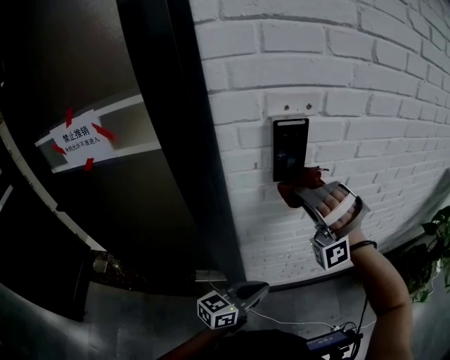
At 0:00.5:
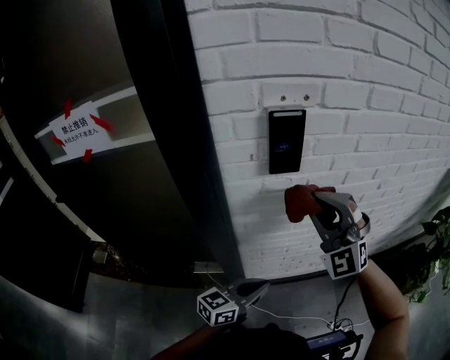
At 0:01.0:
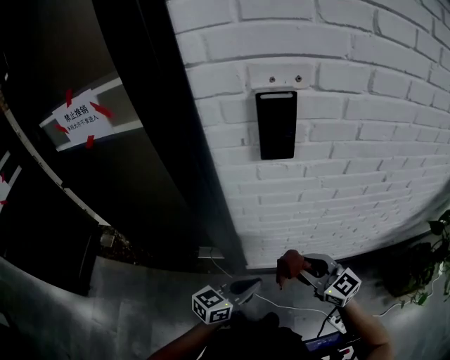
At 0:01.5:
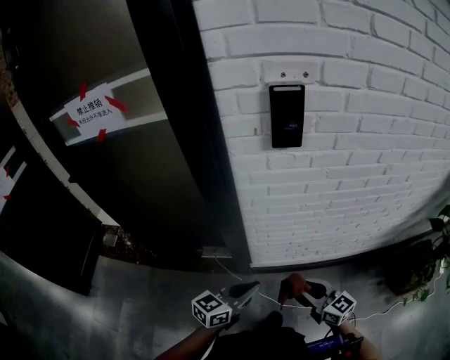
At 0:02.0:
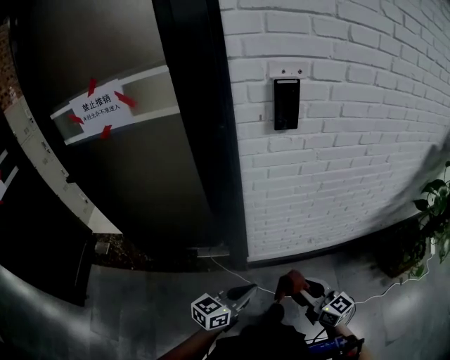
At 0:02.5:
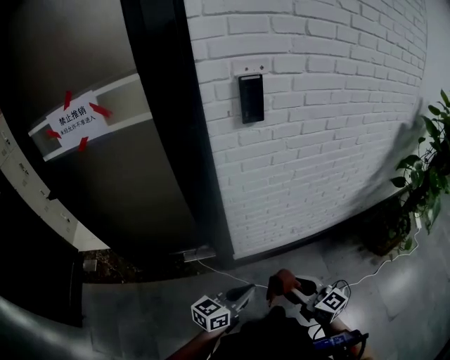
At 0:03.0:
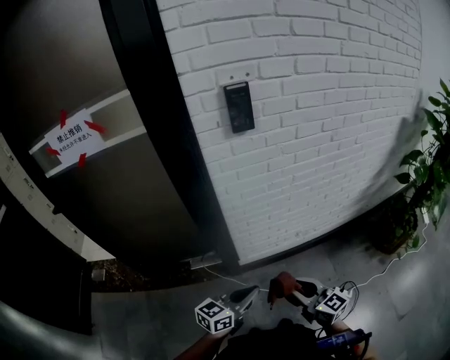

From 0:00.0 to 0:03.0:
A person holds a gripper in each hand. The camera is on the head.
From 0:00.0 to 0:01.5: The right gripper is displaced downward and backward by some 35 cm, and twists some 130 degrees clockwise, seen from behind, while the left gripper shifts some 10 cm backward and downward.
From 0:01.5 to 0:03.0: The grippers both shift backward by approximately 15 cm.

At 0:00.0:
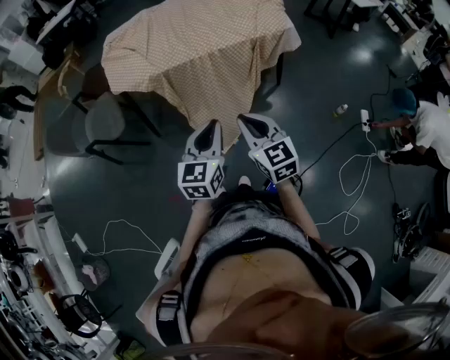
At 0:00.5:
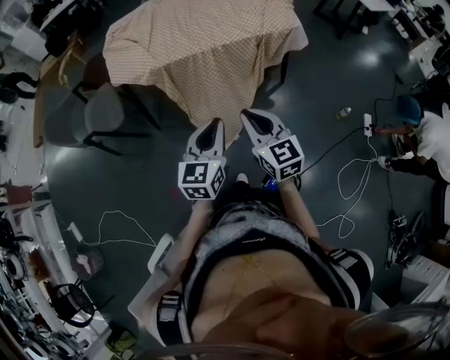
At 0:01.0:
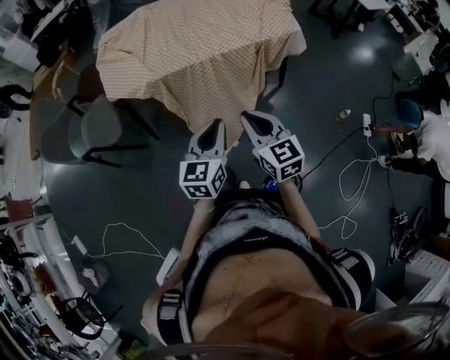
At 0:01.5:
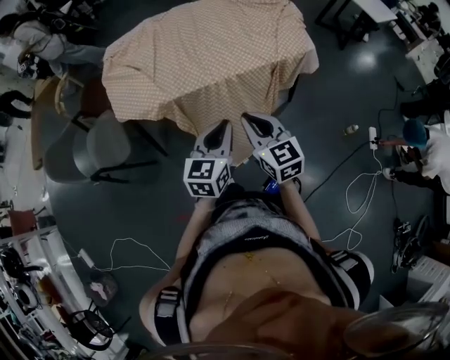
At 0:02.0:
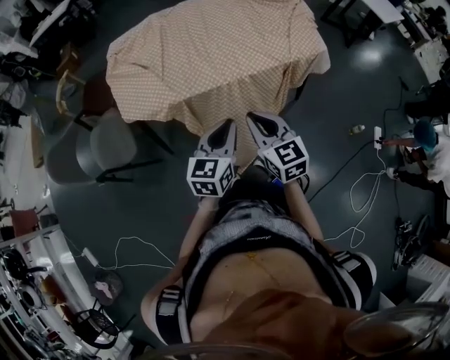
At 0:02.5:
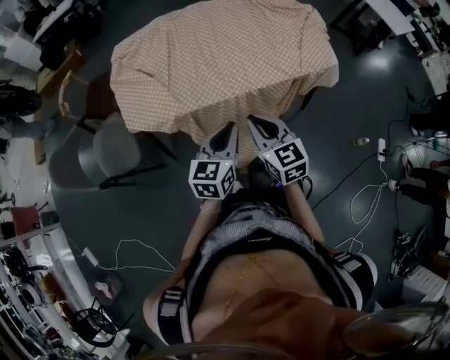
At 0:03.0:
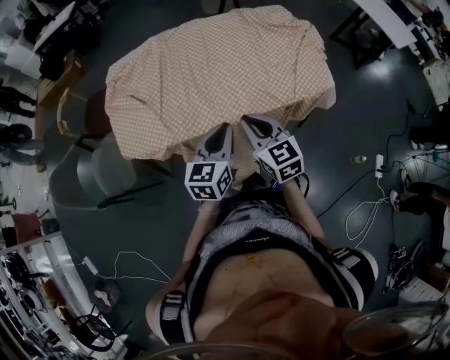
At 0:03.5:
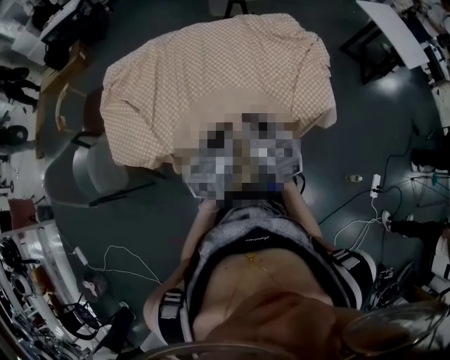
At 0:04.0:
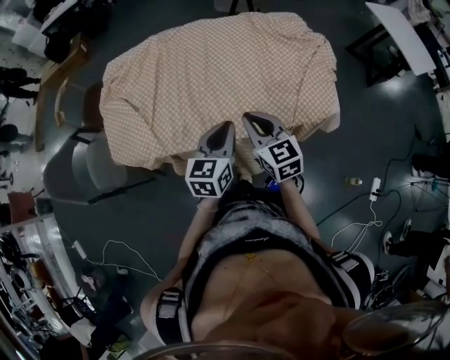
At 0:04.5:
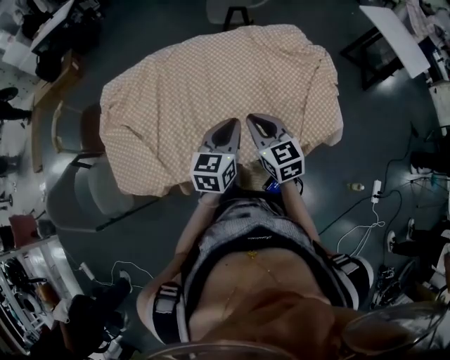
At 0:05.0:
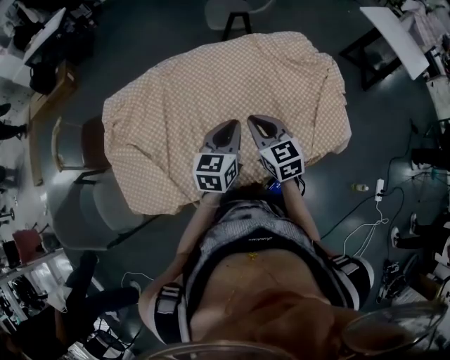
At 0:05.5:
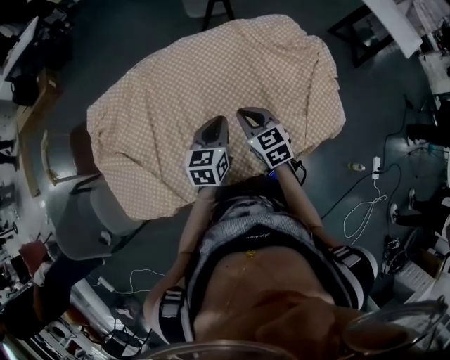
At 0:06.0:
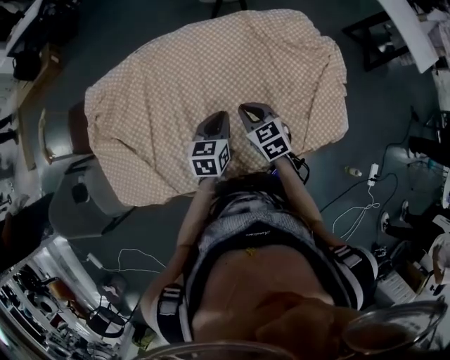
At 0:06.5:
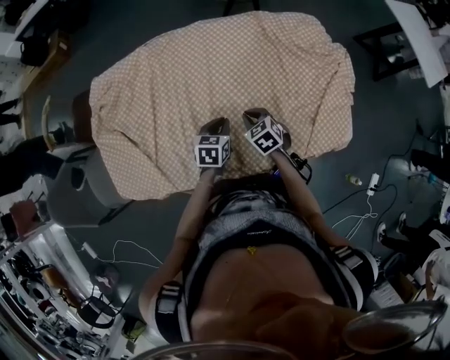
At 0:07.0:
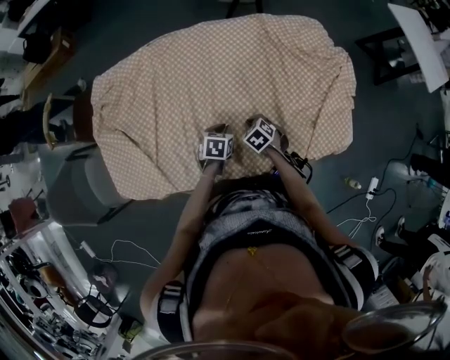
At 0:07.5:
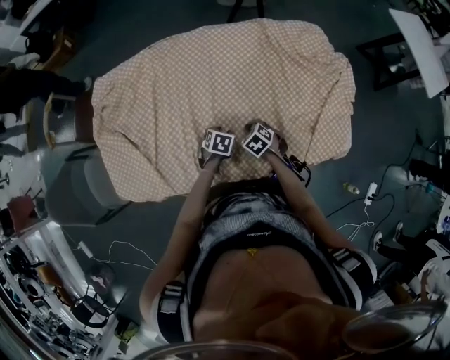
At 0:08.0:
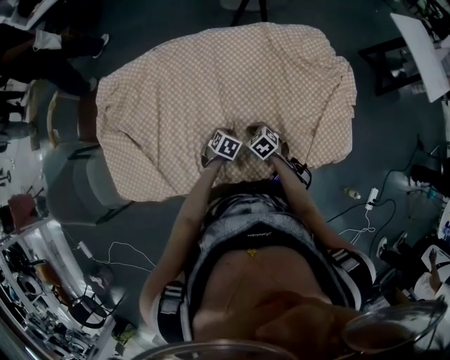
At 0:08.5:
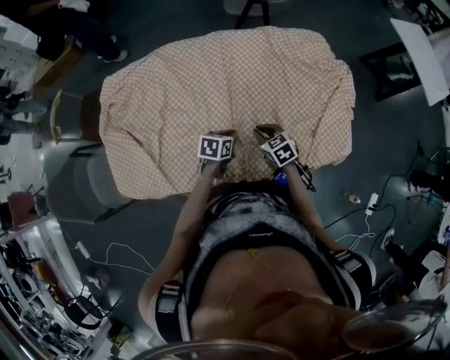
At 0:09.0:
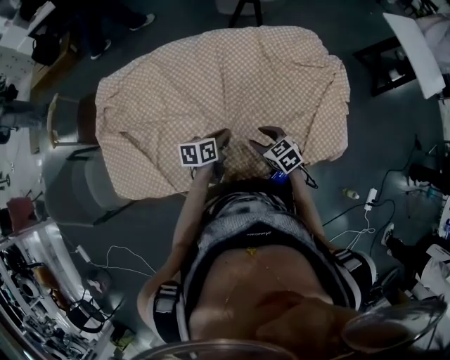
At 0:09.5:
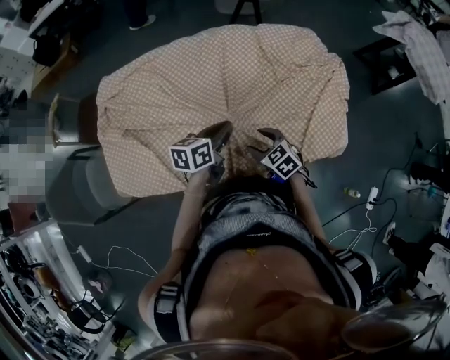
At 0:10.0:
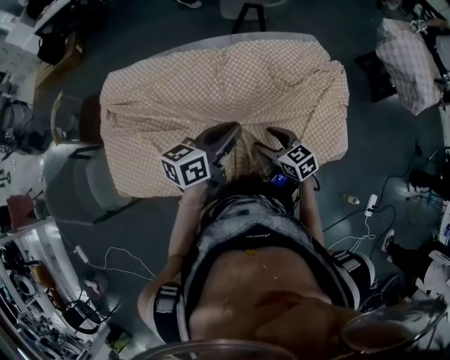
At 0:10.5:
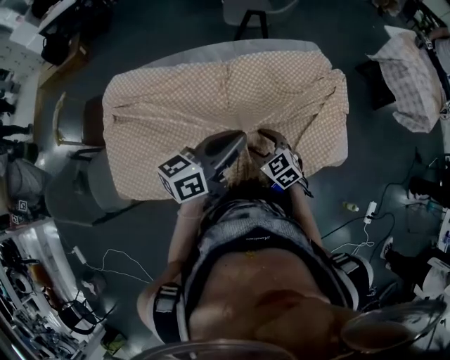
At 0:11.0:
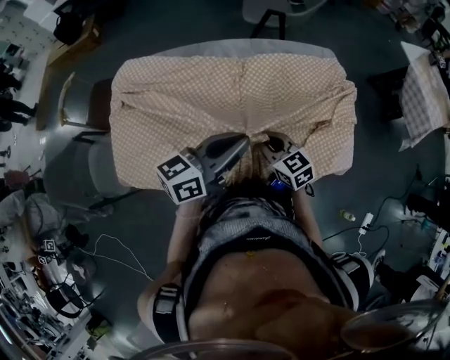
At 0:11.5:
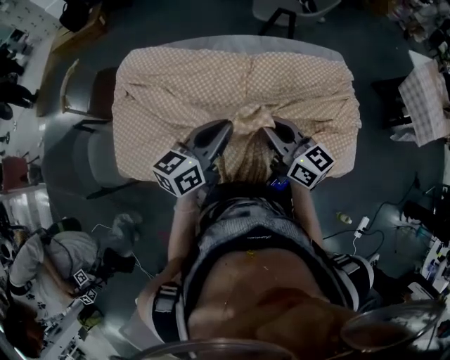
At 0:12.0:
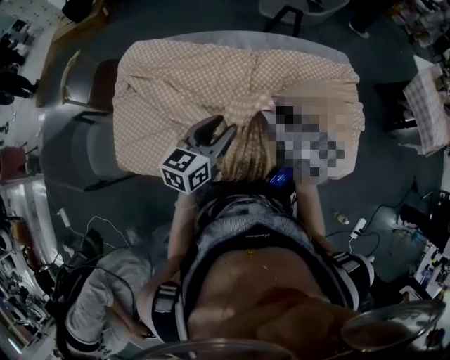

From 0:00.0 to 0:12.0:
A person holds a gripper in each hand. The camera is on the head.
From 0:00.0 to 0:02.0: Both grippers travel together forward, about 20 cm.
From 0:02.0 to 0:04.0: Both grippers move forward, some 25 cm.
From 0:04.0 to 0:06.0: Both grippers travel together forward and downward, some 25 cm.
From 0:06.0 to 0:08.0: The two grippers go some 20 cm downward. The right gripper swivels about 30 degrees; the left gripper angles its fingers downward, by about 30 degrees, and opens and closes again.
From 0:08.0 to 0:10.0: The right gripper heads upward, covering approximately 20 cm, rotates approximately 30 degrees, and opens. Meanwhile the left gripper is displaced upward by roughly 35 cm, and tips its fingers upward by about 60 degrees.
From 0:10.0 to 0:12.0: The right gripper heads upward and to the left, covering approximately 25 cm, tilts its fingers approximately 30 degrees upward, and closes its fingers. Meanwhile the left gripper travels to the left by roughly 10 cm, changes its angle by roughly 20 degrees, and opens.

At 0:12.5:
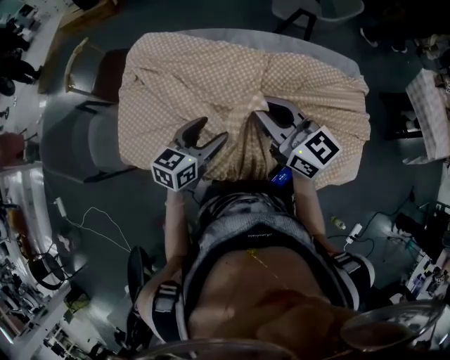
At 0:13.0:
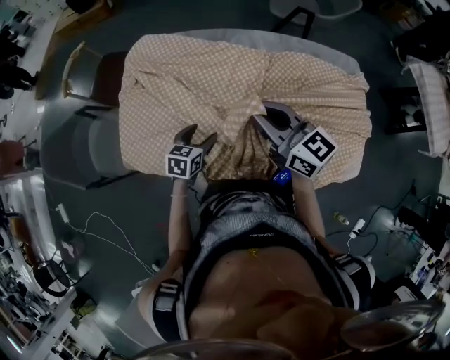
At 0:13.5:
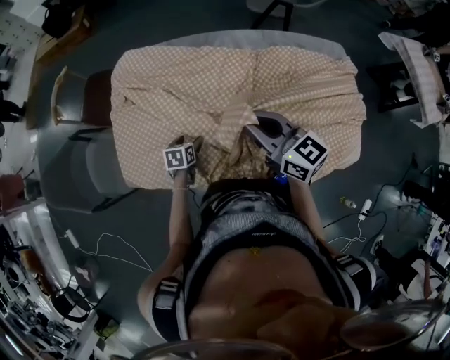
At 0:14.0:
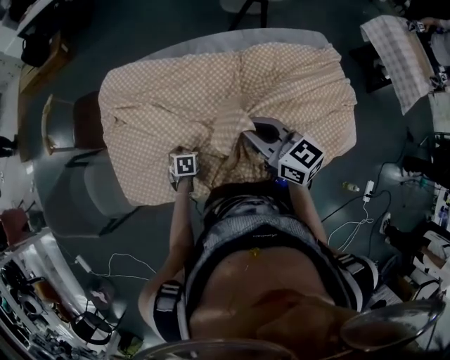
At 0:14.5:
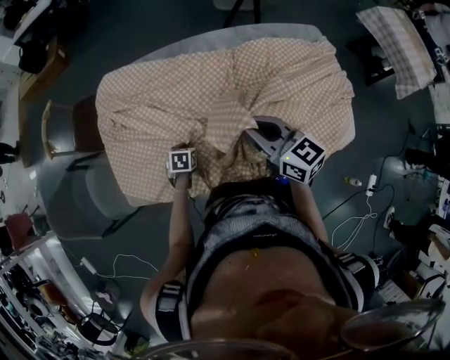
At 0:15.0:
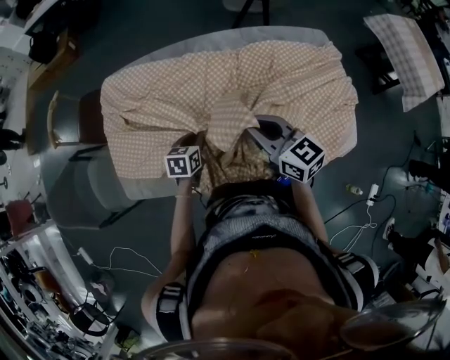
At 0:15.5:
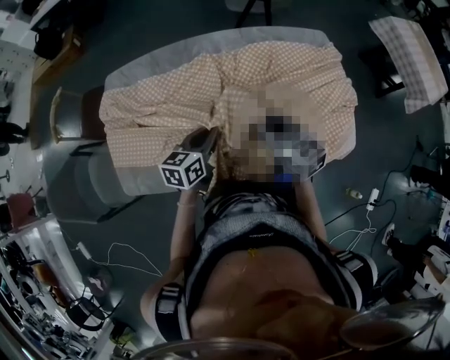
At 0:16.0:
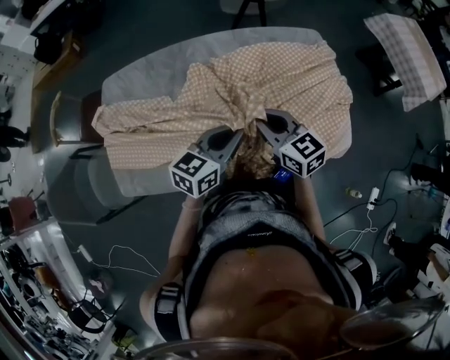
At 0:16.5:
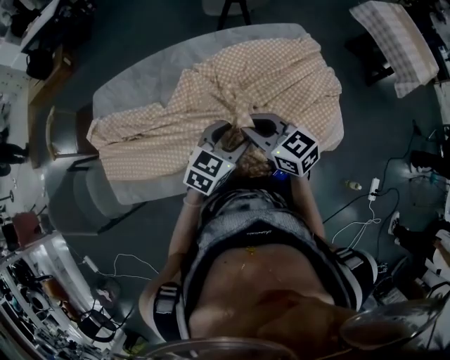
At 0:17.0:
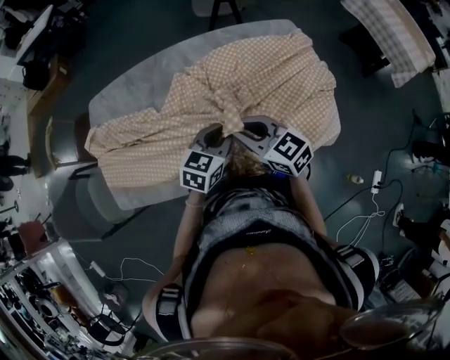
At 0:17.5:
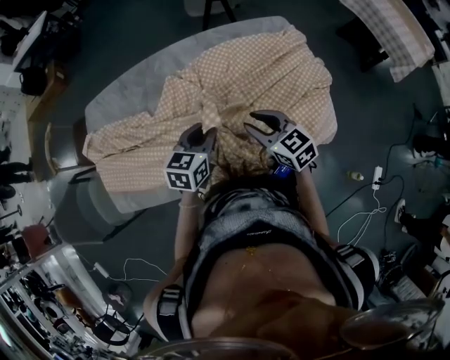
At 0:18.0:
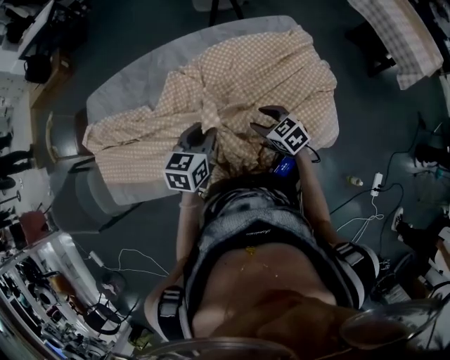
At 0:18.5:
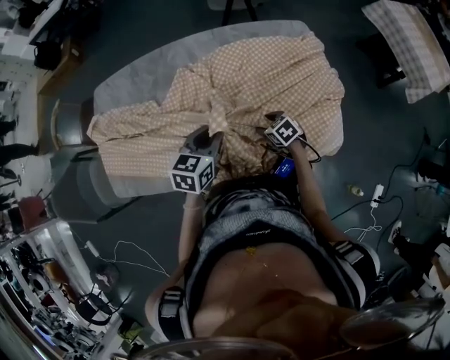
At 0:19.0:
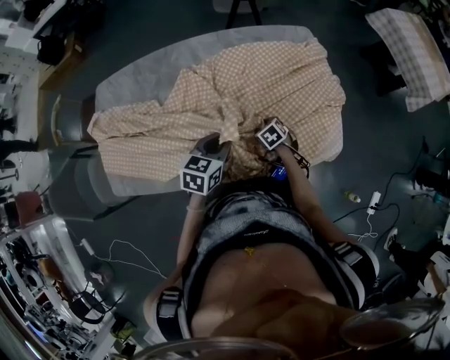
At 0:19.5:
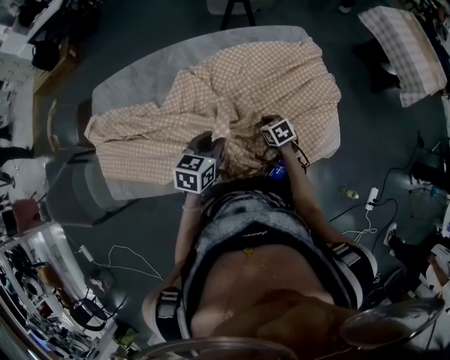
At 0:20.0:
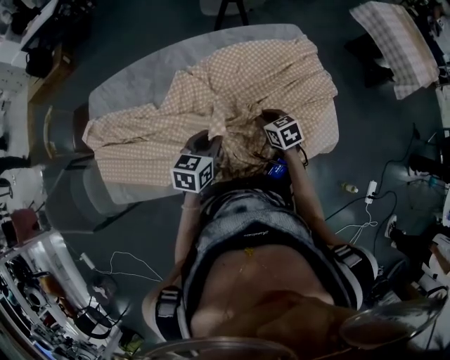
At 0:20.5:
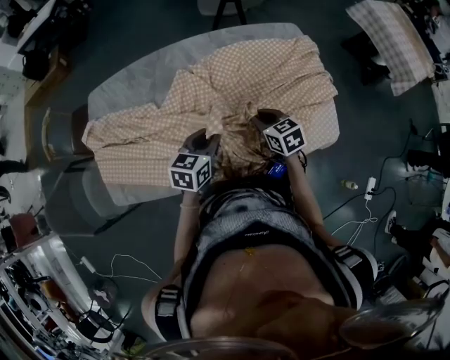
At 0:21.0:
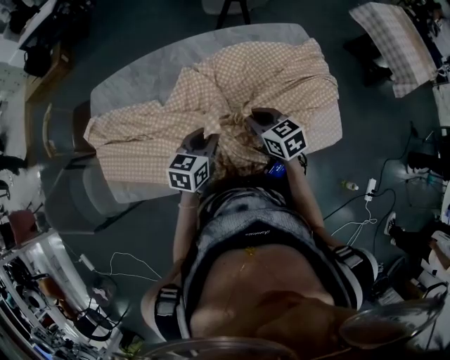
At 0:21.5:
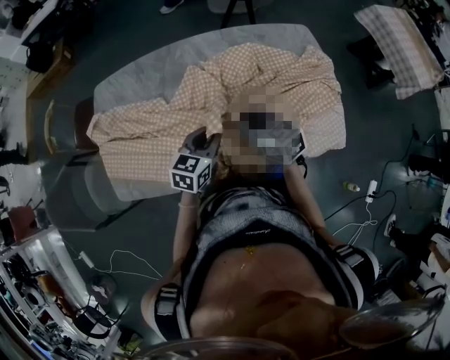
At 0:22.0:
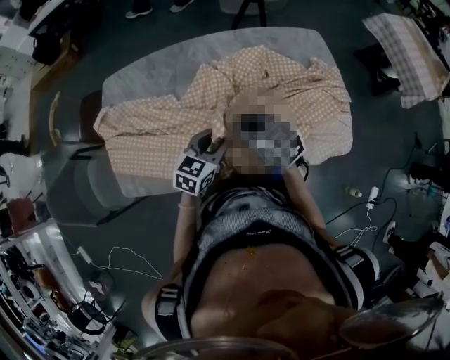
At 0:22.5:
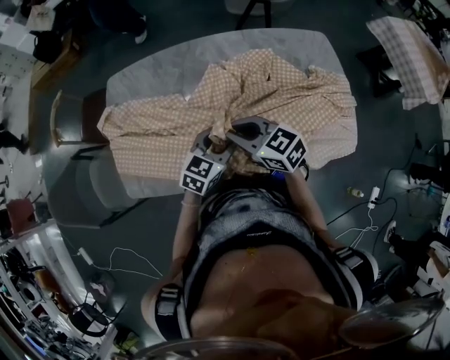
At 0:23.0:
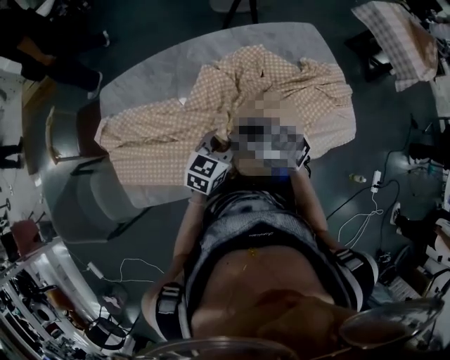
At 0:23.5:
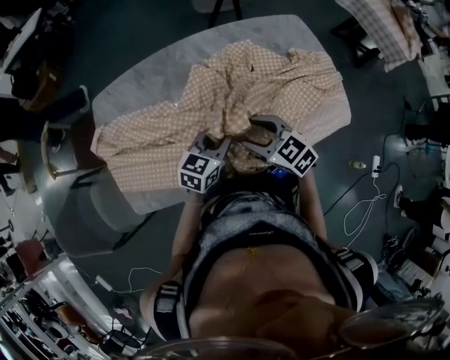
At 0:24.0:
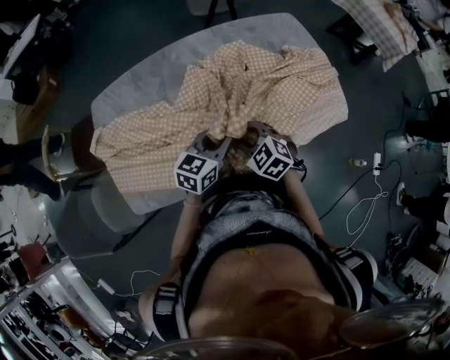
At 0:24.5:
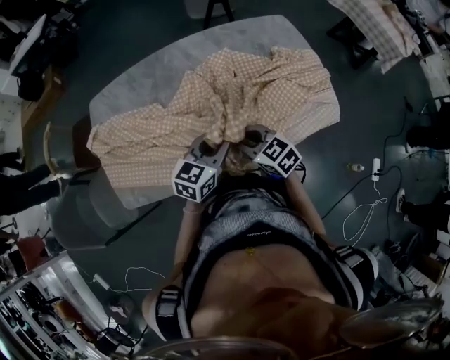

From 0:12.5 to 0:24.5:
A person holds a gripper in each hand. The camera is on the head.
From 0:12.5 to 0:14.5: The right gripper travels downward by approximately 5 cm, while the left gripper moves downward, approximately 25 cm, points its fingers approximately 40 degrees further downward, and closes its fingers.
From 0:14.5 to 0:16.5: The left gripper moves to the right and upward, approximately 40 cm, tilts its fingers some 40 degrees upward, and opens its fingers; the right gripper goes about 10 cm to the right.
From 0:16.5 to 0:18.5: The left gripper swivels some 20 degrees, and closes up; the right gripper is displaced downward and to the right by roughly 30 cm, tilts its fingers roughly 40 degrees downward, and opens up.
From 0:18.5 to 0:20.5: The right gripper heads upward, covering about 15 cm, turns by about 20 degrees, and closes.
From 0:20.5 to 0:22.5: The left gripper travels to the left by about 5 cm, and opens its fingers, while the right gripper is displaced to the left and upward by some 25 cm, and changes its angle by some 30 degrees.
From 0:22.5 to 0:24.5: The right gripper heads to the right, backward and downward, covering some 10 cm, and opens and closes again; the left gripper travels backward and to the right by about 10 cm, and closes its fingers.
